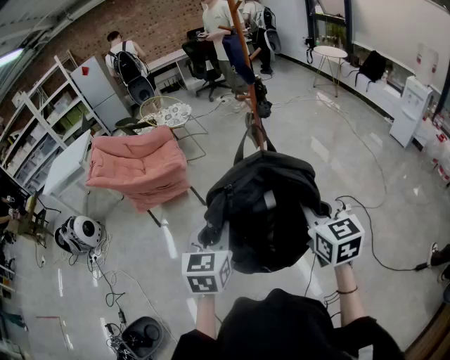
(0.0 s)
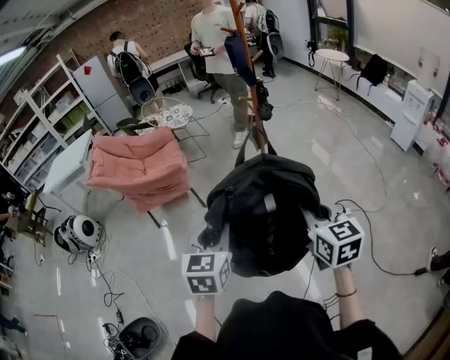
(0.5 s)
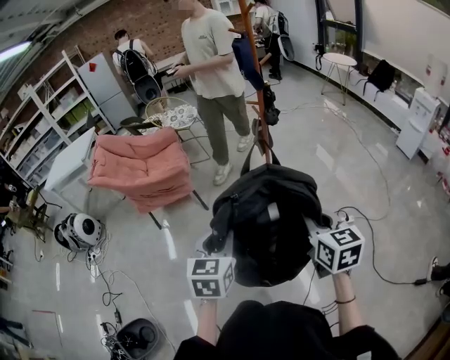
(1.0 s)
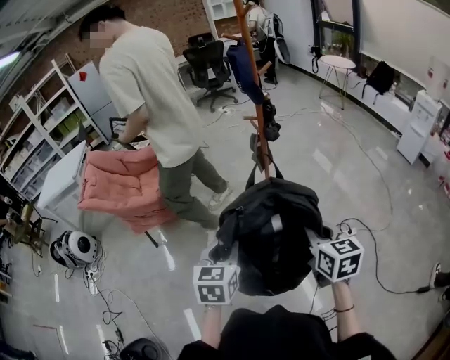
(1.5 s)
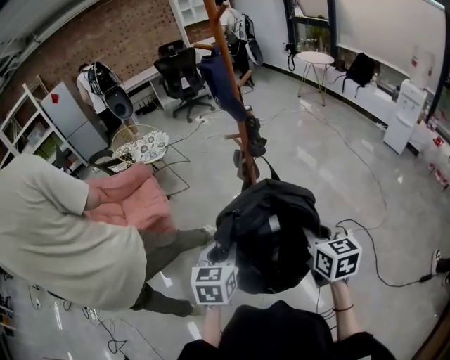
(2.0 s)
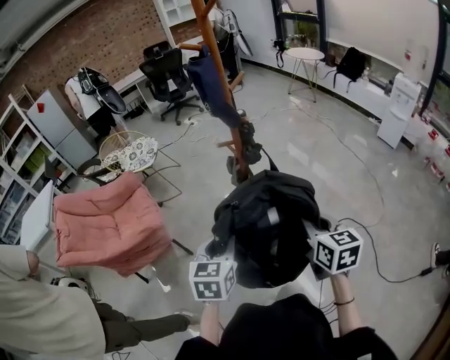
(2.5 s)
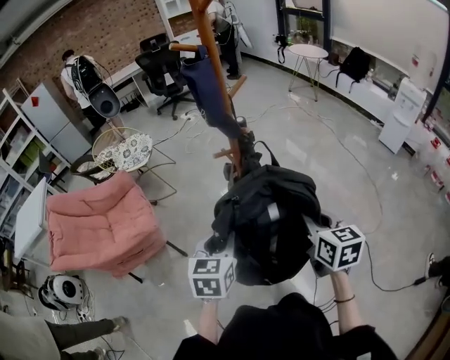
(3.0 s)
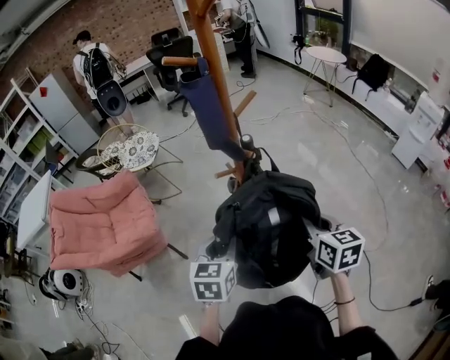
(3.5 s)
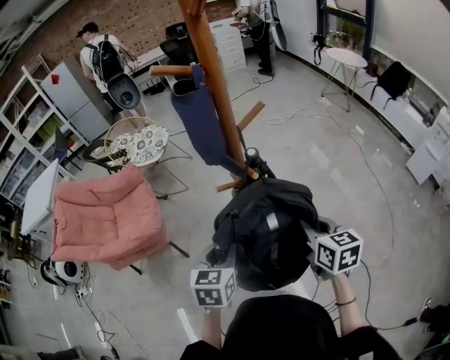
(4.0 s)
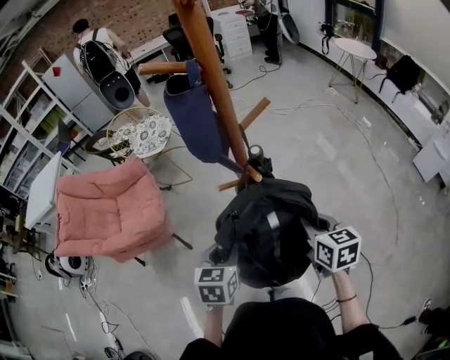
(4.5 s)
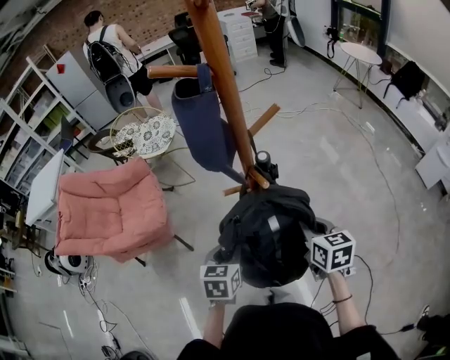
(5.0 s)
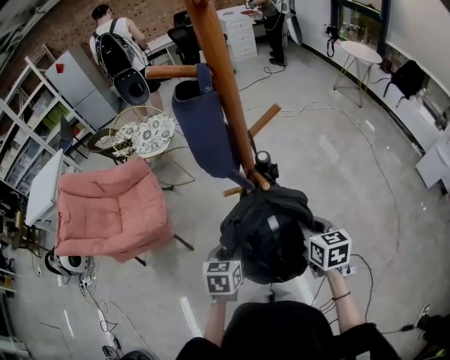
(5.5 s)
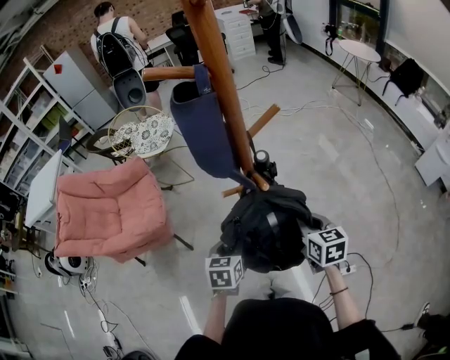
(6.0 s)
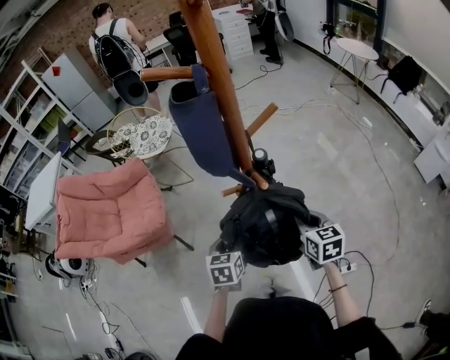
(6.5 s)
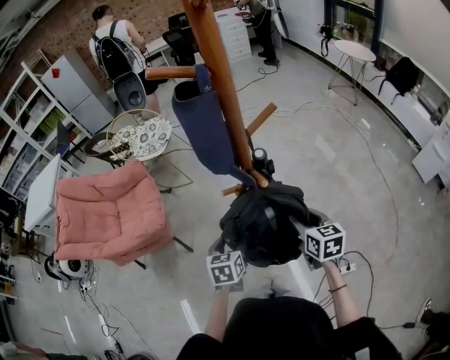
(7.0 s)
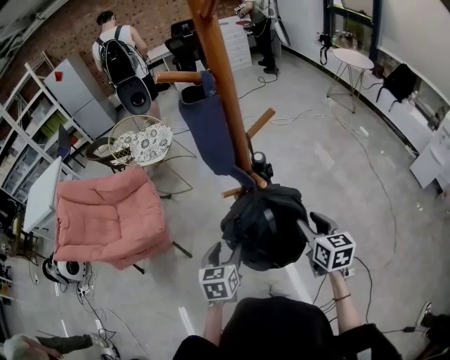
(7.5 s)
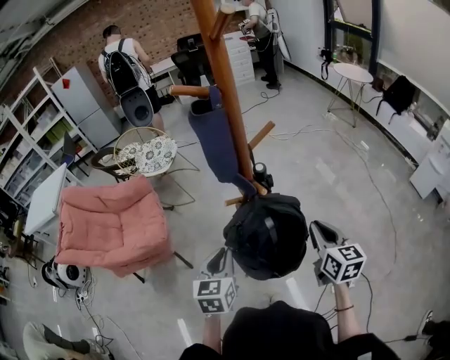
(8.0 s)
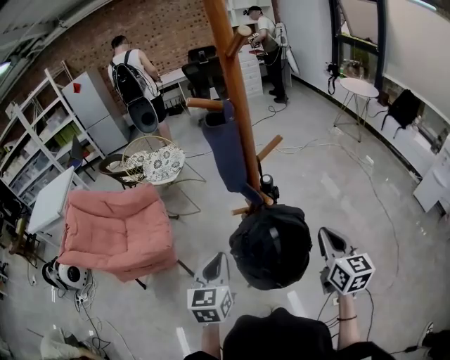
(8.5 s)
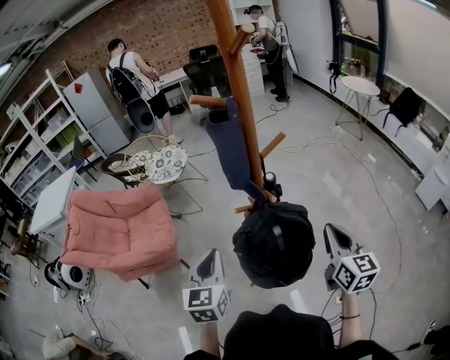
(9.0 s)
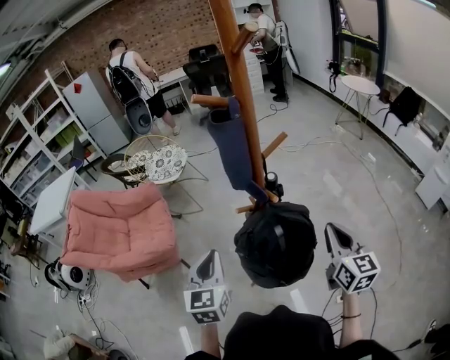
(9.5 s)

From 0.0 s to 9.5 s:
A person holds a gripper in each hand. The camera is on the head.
From 0.0 s to 2.0 s: The grippers both shift forward by roughly 25 cm.
From 2.0 s to 4.0 s: The grippers both shift forward by roughly 30 cm.
From 4.0 s to 5.5 s: The left gripper moves downward, approximately 10 cm. The right gripper is displaced downward and forward by about 10 cm.
From 5.5 s to 7.5 s: The left gripper opens. The right gripper opens its fingers.
From 7.5 s to 9.5 s: The left gripper heads upward and to the left, covering approximately 15 cm, changes its angle by some 20 degrees, and closes. The right gripper moves upward, about 10 cm, and closes.

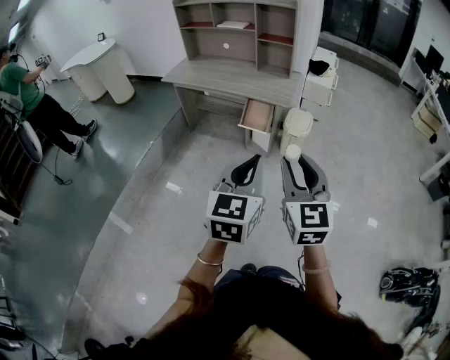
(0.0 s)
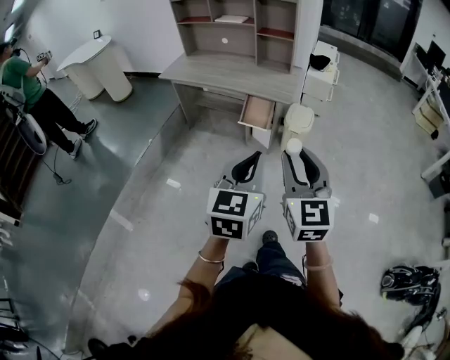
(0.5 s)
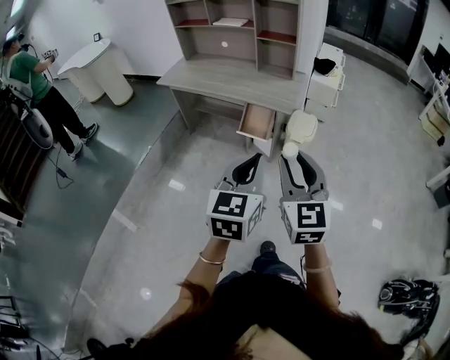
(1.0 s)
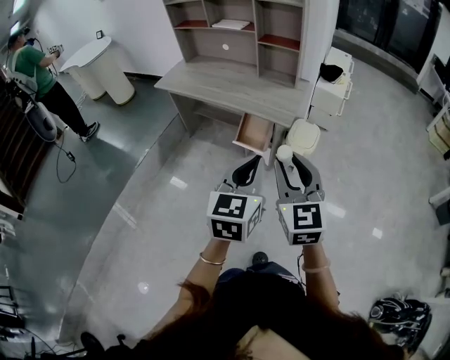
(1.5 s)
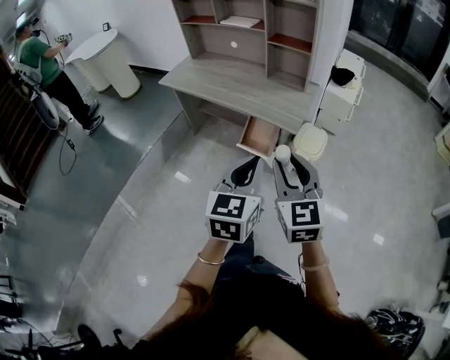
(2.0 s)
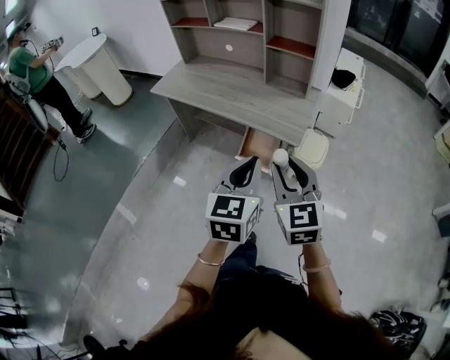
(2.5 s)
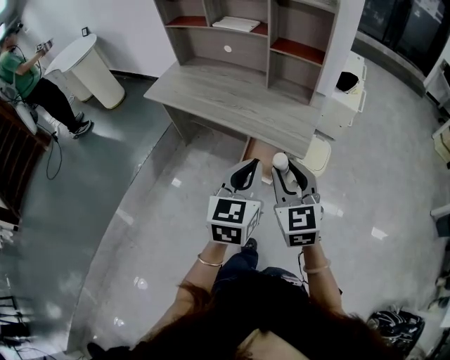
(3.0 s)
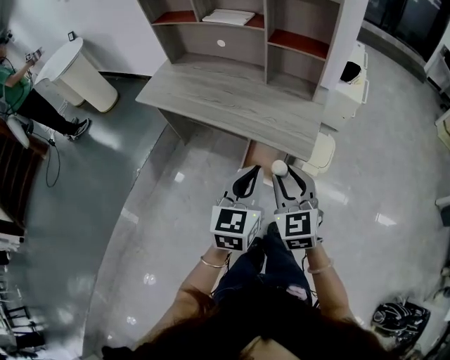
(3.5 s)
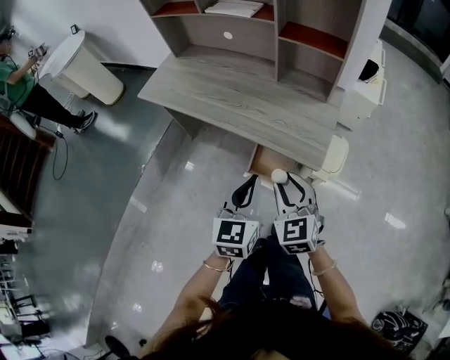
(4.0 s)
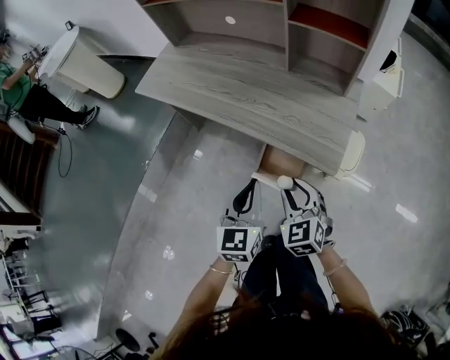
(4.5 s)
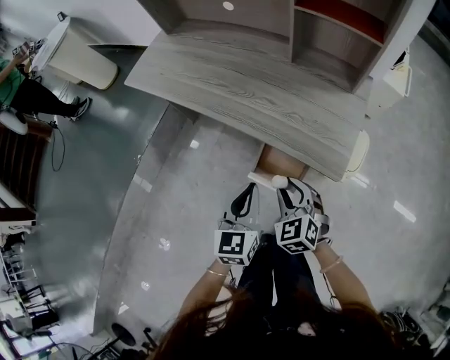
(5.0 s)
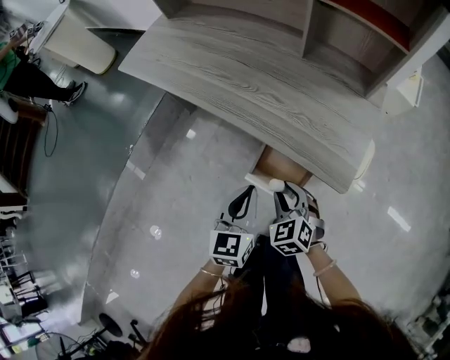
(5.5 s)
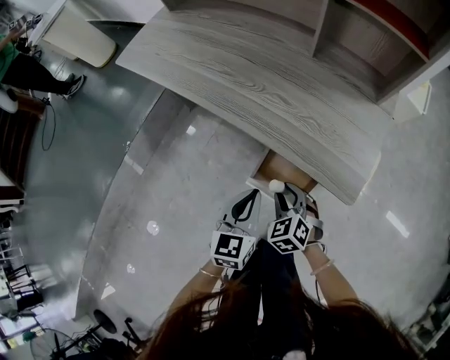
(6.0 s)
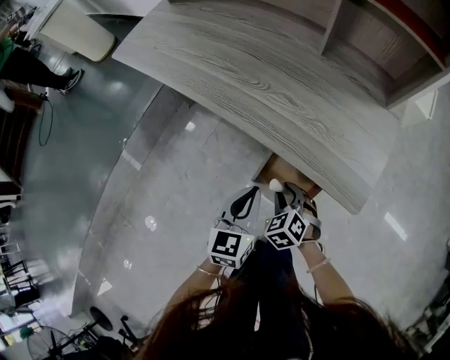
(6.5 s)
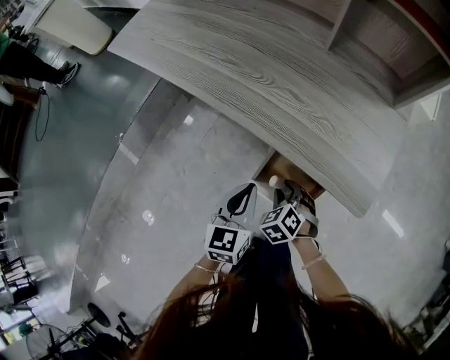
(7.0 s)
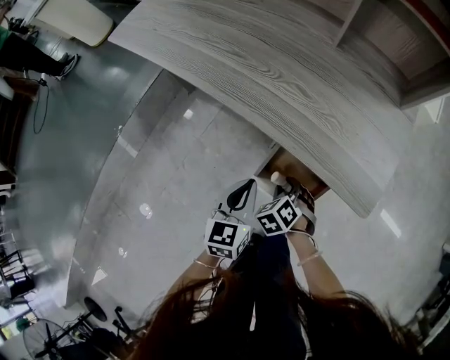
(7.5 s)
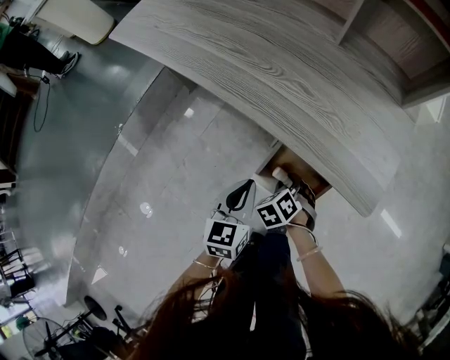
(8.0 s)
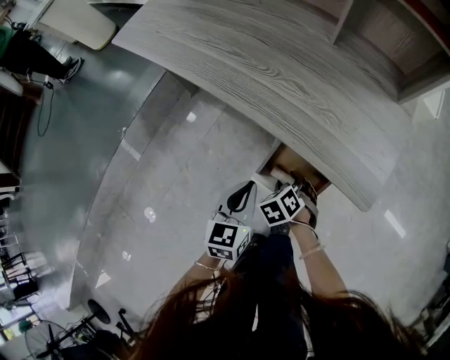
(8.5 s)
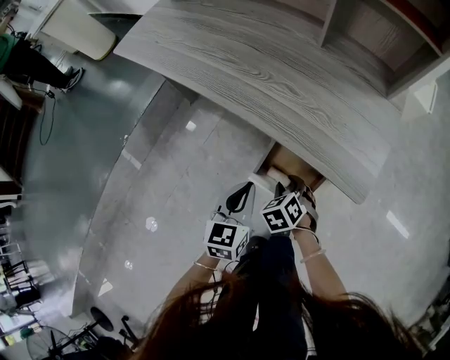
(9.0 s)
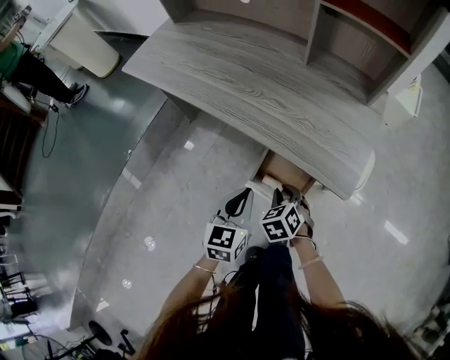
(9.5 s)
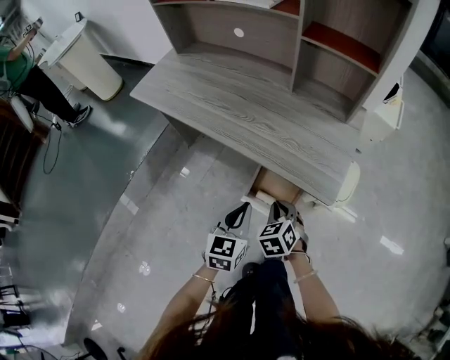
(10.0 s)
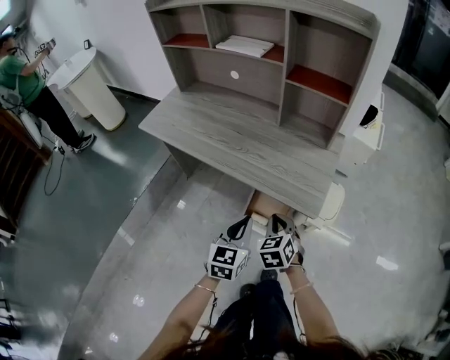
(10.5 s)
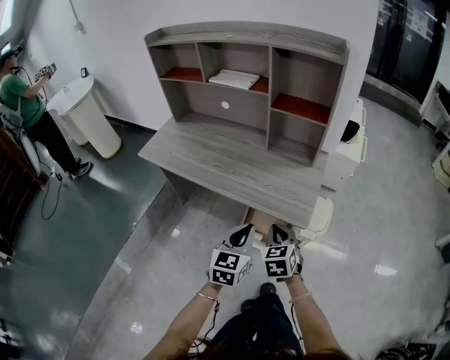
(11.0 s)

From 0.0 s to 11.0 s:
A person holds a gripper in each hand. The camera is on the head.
From 0.0 s to 2.0 s: Both grippers travel together forward, roughly 25 cm.
From 2.0 s to 3.5 s: The left gripper heads forward, covering some 25 cm. Meanwhile the right gripper heads forward and downward, covering approximately 25 cm.
From 3.5 s to 5.5 s: Both grippers travel together downward and forward, some 30 cm. The right gripper changes its angle by roughly 30 degrees.
From 5.5 s to 7.5 s: The two grippers go some 15 cm downward. The right gripper swivels some 30 degrees.
From 7.5 s to 9.0 s: There are only small adjustments of the grippers.
From 9.0 s to 11.0 s: The grippers both shift upward by about 30 cm. The right gripper turns by approximately 40 degrees, and closes.

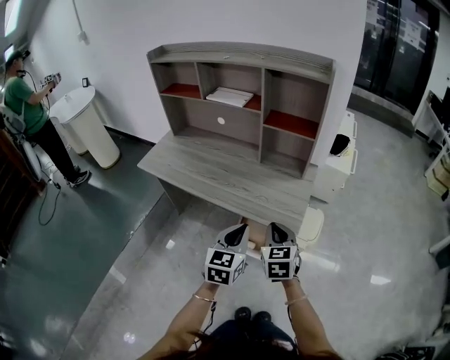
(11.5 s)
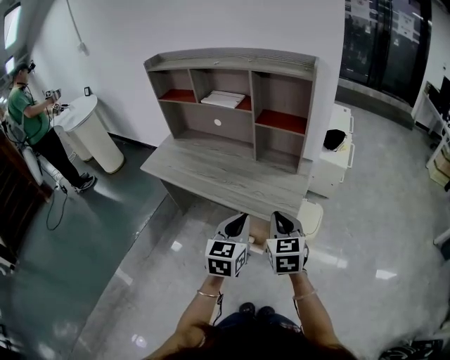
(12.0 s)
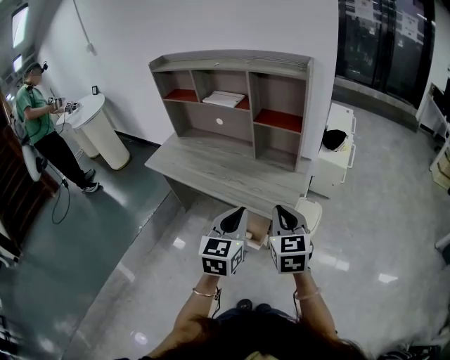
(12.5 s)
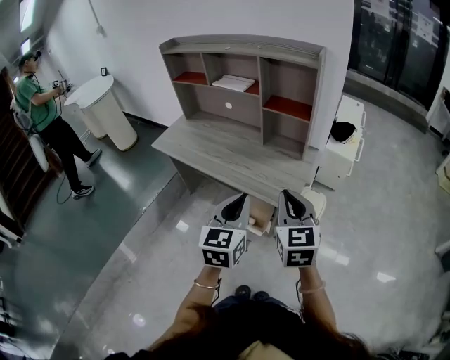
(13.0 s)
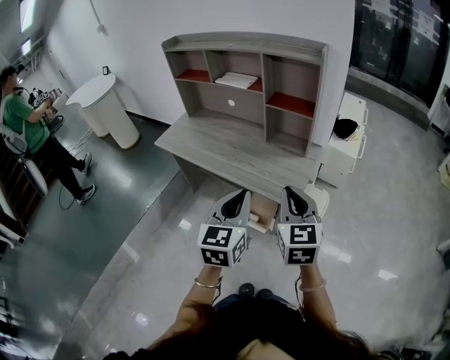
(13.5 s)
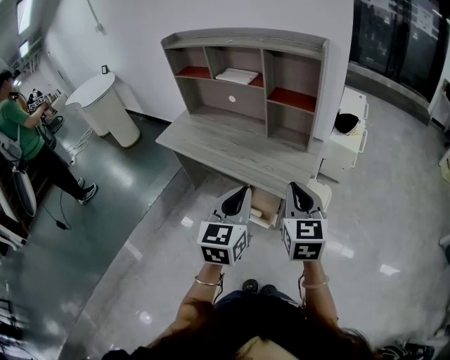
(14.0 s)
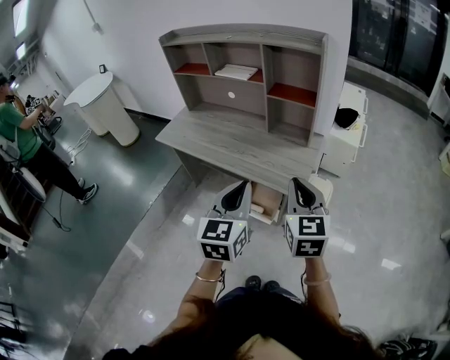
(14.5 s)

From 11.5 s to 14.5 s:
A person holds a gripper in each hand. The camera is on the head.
From 11.5 s to 13.0 s: The left gripper heads upward, backward and to the right, covering about 15 cm. The right gripper is displaced upward, to the right and backward by roughly 20 cm.
From 13.0 s to 14.5 s: There are only small adjustments of the grippers.

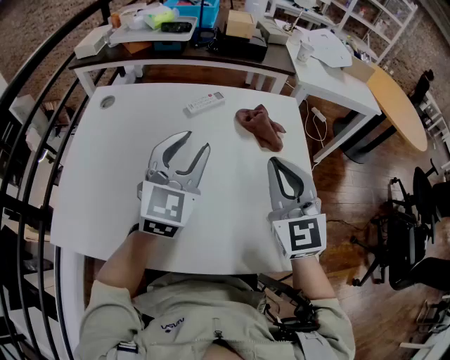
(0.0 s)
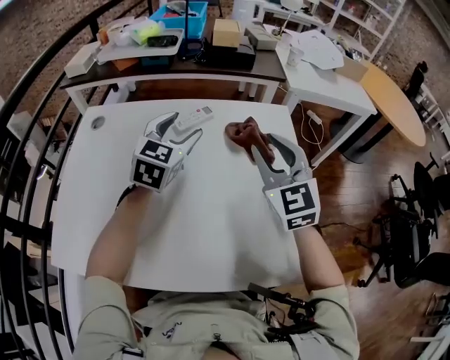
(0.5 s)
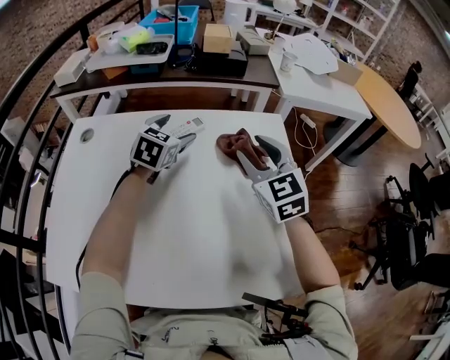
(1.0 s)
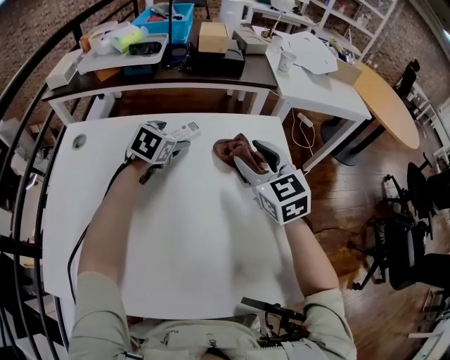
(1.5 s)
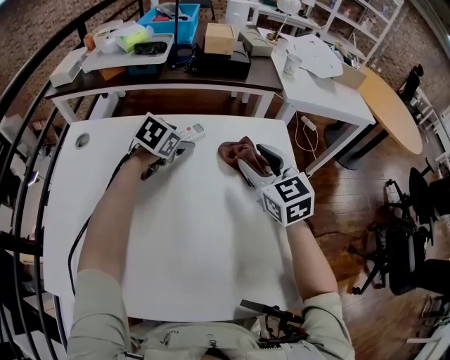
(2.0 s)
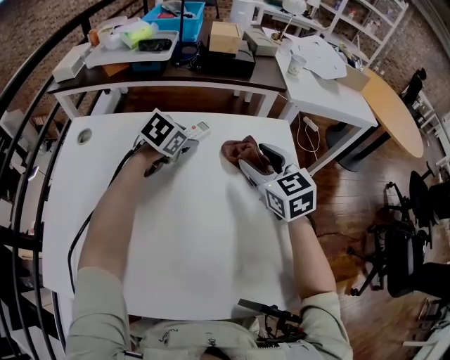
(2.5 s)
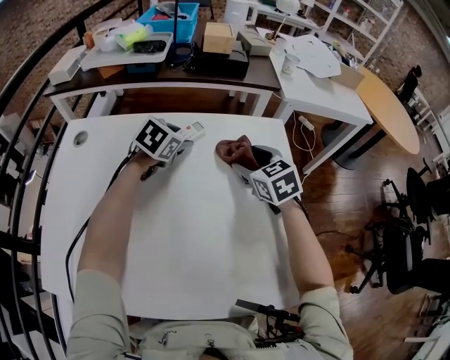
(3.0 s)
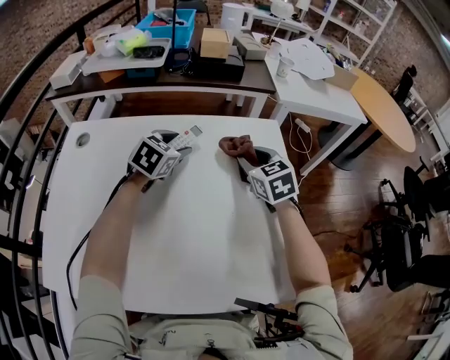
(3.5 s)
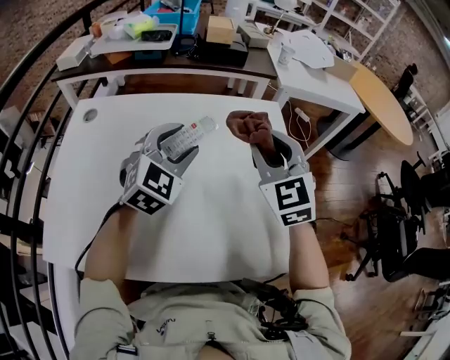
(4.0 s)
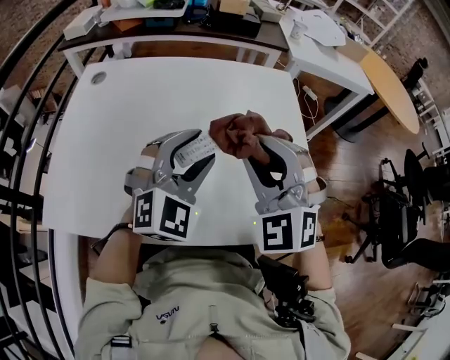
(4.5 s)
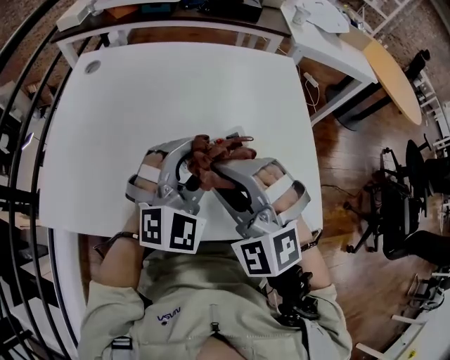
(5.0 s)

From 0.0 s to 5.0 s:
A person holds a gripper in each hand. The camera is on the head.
From 0.0 s to 2.5 s: The two grippers go approximately 25 cm forward and downward. The left gripper angles its fingers downward, by roughly 40 degrees, and opens and closes again; the right gripper rotates about 30 degrees, and opens up.
From 2.5 s to 5.0 s: The two grippers go some 30 cm backward. The left gripper tips its fingers upward by about 30 degrees, while the right gripper rolls counterclockwise, seen from behind, by approximately 60 degrees, and closes.
